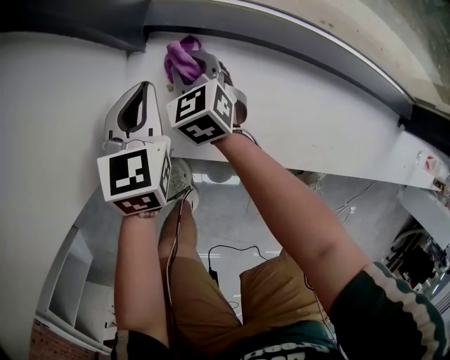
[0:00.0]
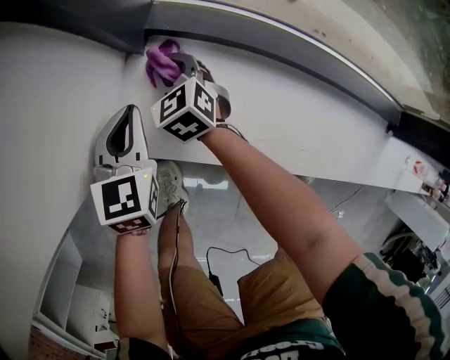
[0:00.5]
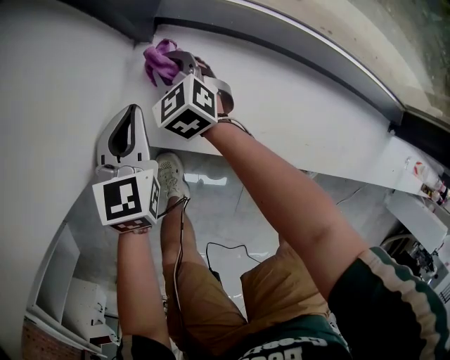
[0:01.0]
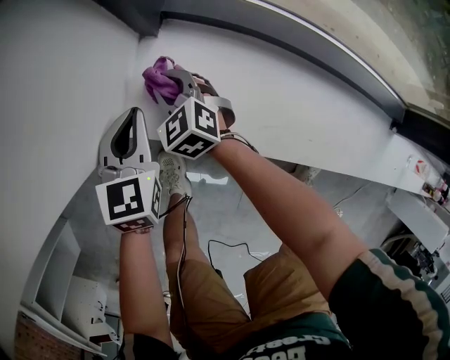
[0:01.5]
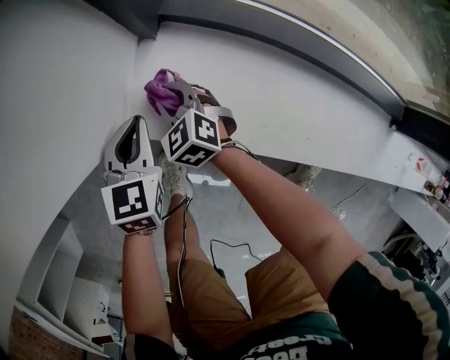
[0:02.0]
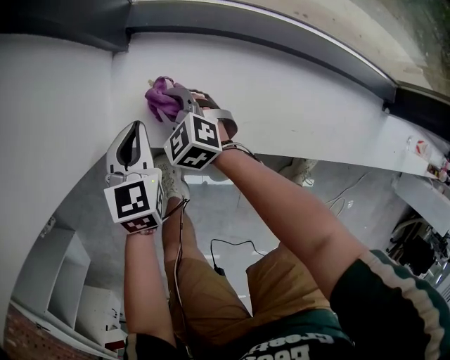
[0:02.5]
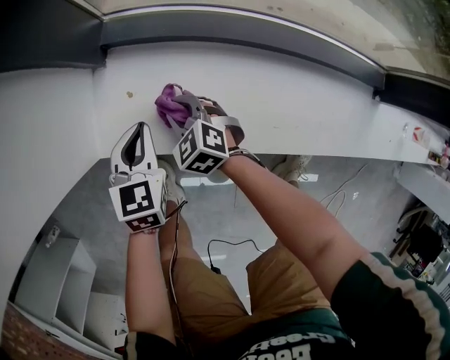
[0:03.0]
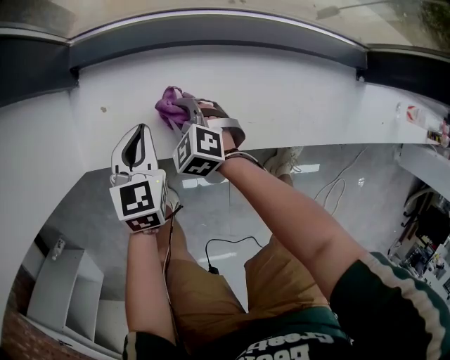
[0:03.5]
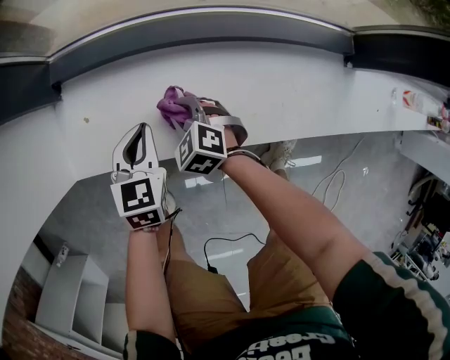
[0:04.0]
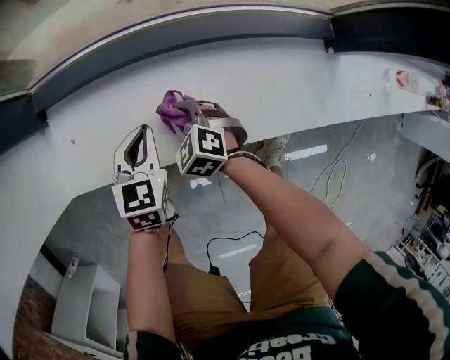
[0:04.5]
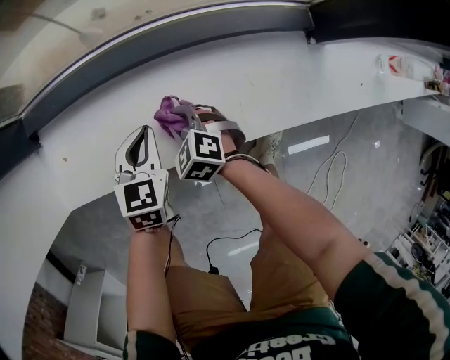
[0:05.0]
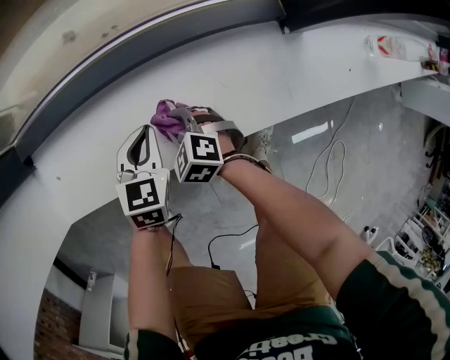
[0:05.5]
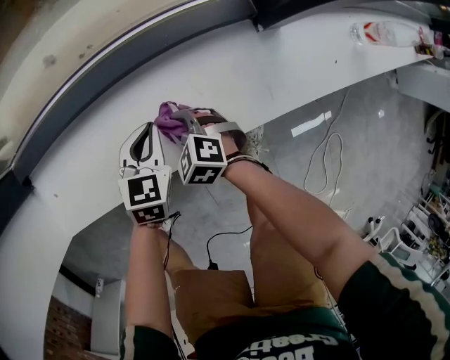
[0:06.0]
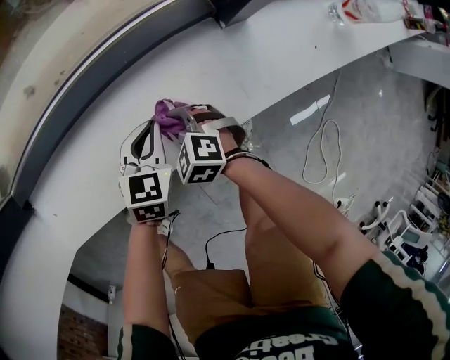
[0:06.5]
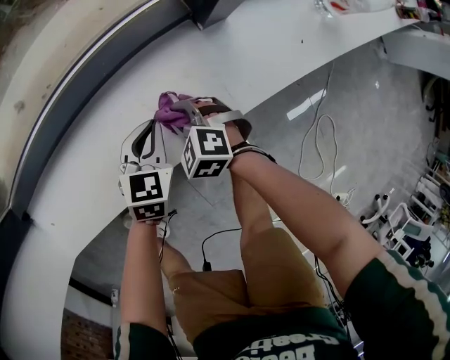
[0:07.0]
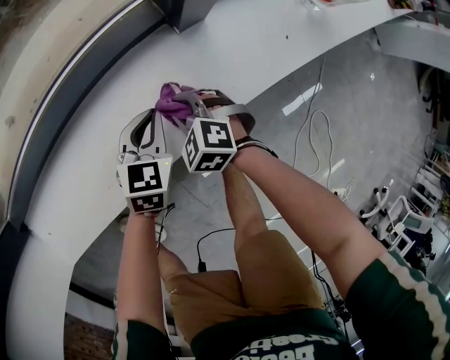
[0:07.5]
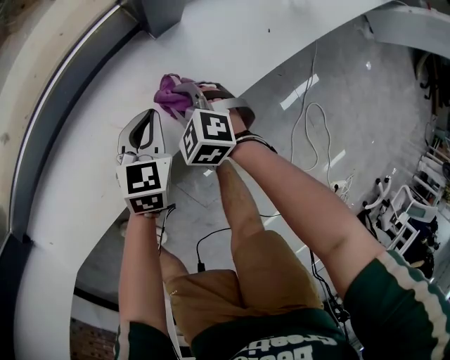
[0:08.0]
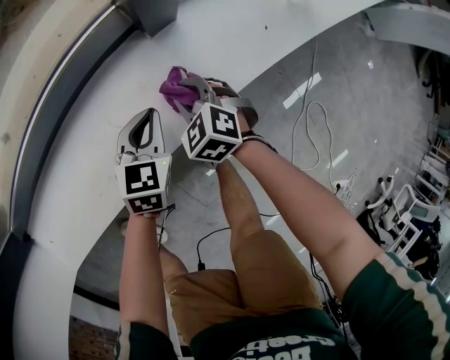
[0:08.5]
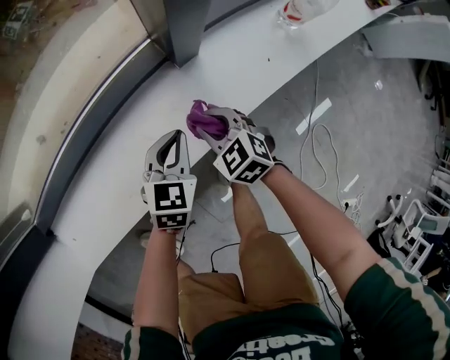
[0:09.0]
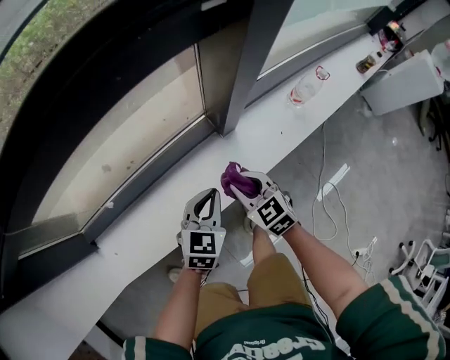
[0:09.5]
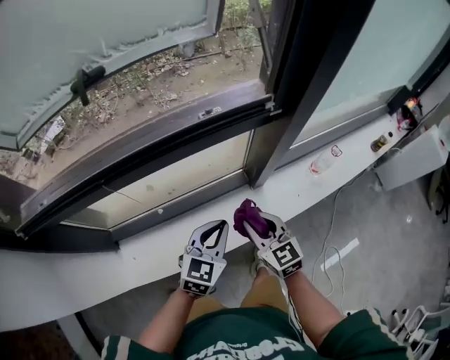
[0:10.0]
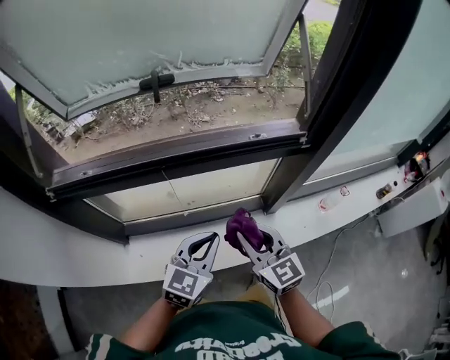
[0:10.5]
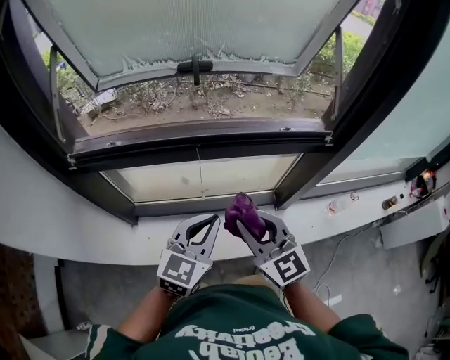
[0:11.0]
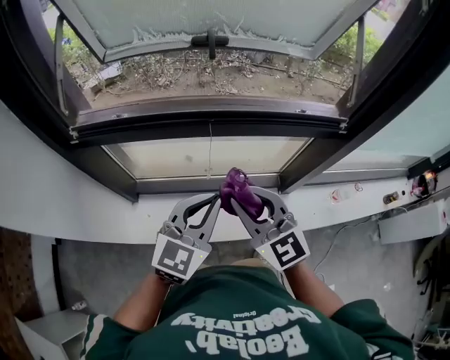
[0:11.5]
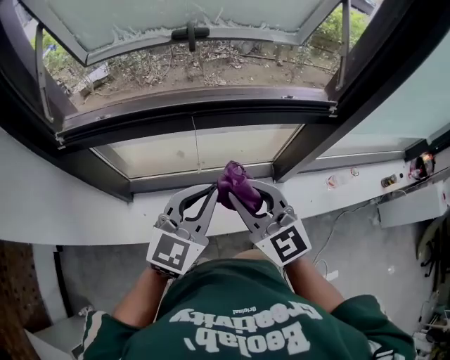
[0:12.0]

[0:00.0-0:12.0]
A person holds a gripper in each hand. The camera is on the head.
0:00.0 to 0:02.0: The left gripper goes about 10 cm backward and to the left. Meanwhile the right gripper travels to the left and backward by about 10 cm, and rotates roughly 20 degrees.
0:02.0 to 0:04.0: The left gripper is displaced to the right by roughly 25 cm. The right gripper moves to the right and backward, some 25 cm.
0:04.0 to 0:06.0: Both grippers move to the right, approximately 25 cm. The left gripper swivels some 20 degrees.
0:06.0 to 0:08.0: The grippers both shift to the right by some 25 cm.
0:08.0 to 0:10.0: The two grippers go approximately 50 cm upward. The right gripper points its fingers approximately 40 degrees further upward.
0:10.0 to 0:12.0: The grippers both shift upward and to the left by approximately 25 cm. The right gripper changes its angle by approximately 30 degrees. Meanwhile the left gripper turns by some 20 degrees.

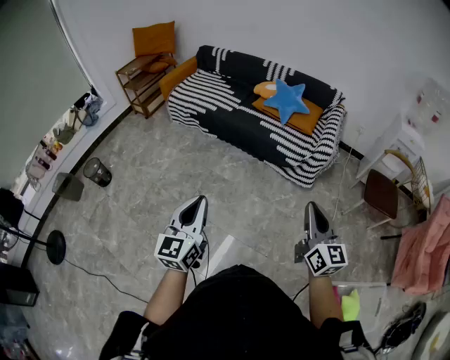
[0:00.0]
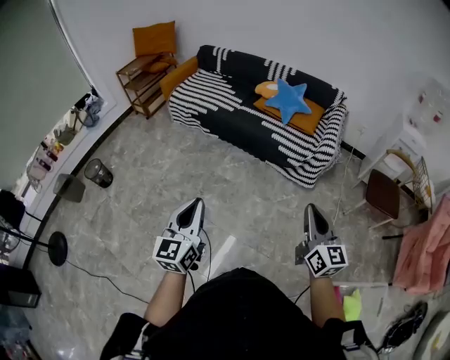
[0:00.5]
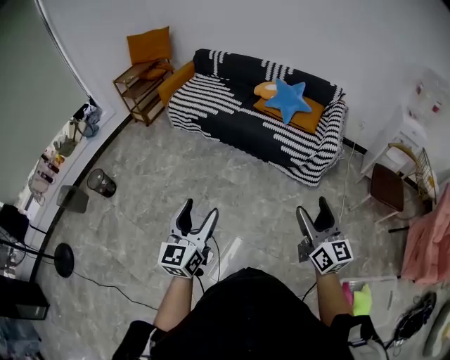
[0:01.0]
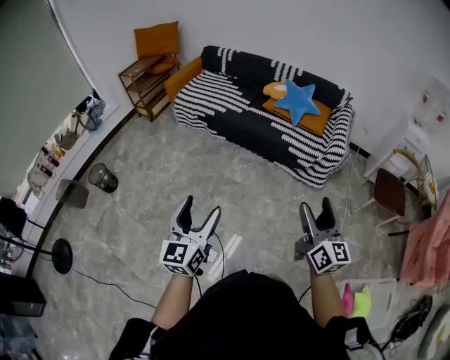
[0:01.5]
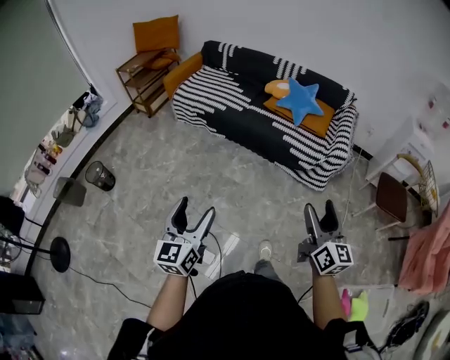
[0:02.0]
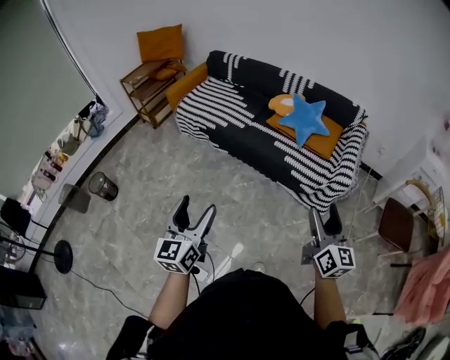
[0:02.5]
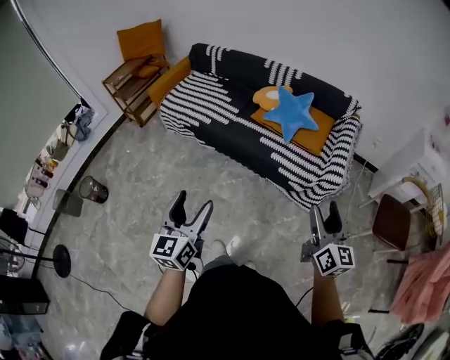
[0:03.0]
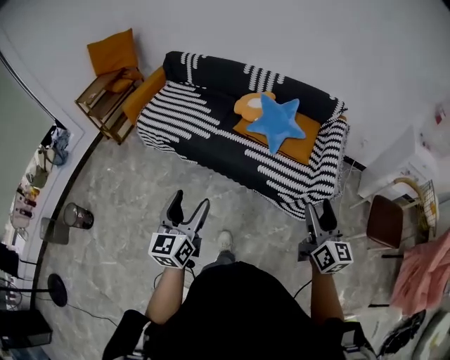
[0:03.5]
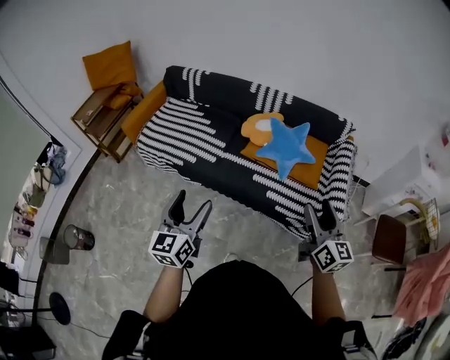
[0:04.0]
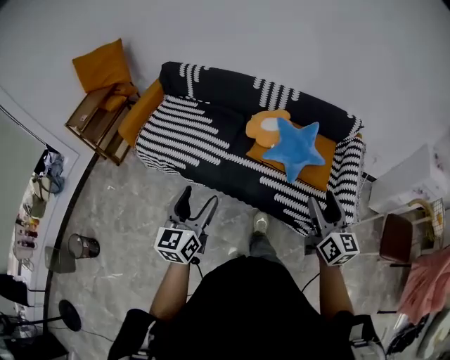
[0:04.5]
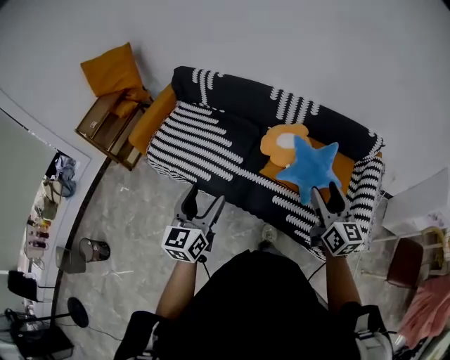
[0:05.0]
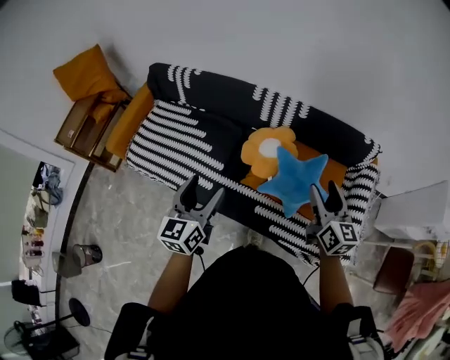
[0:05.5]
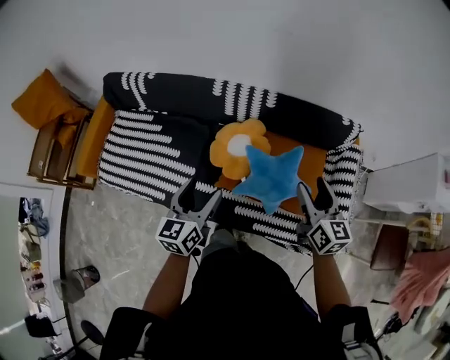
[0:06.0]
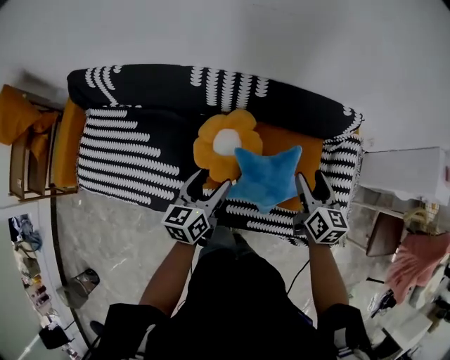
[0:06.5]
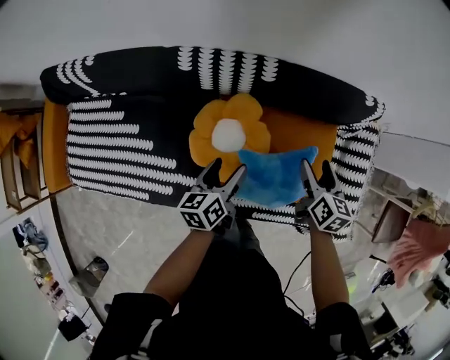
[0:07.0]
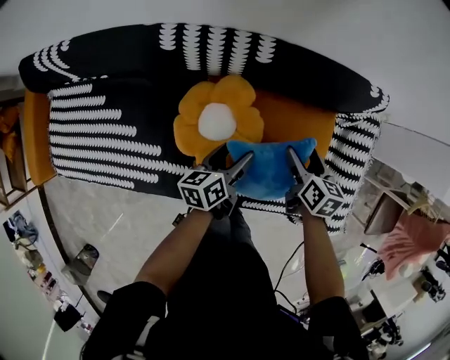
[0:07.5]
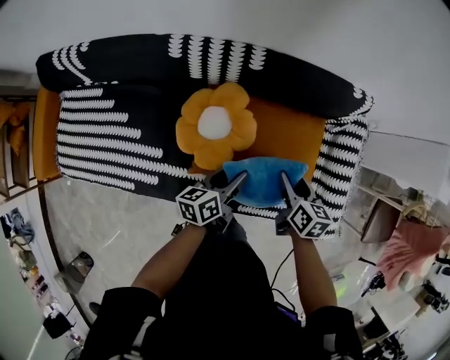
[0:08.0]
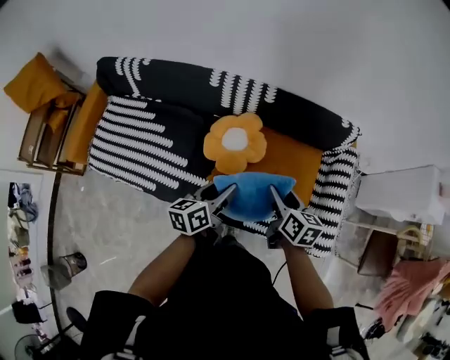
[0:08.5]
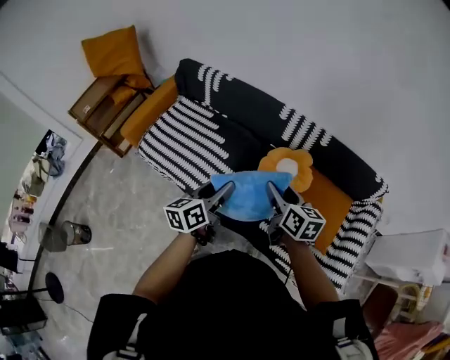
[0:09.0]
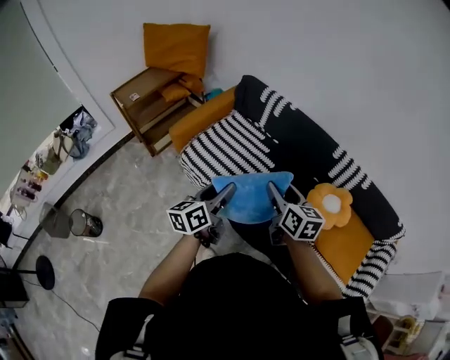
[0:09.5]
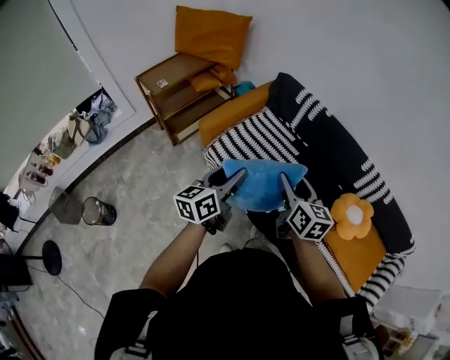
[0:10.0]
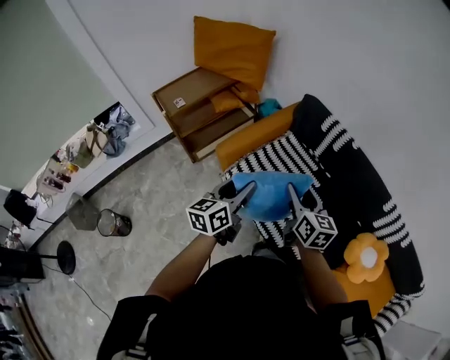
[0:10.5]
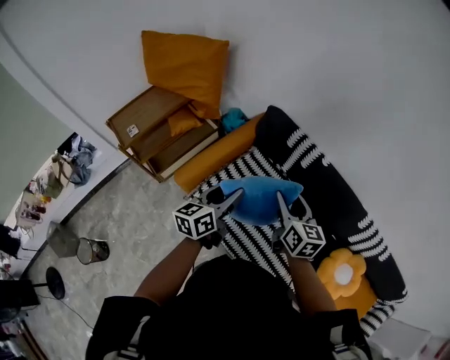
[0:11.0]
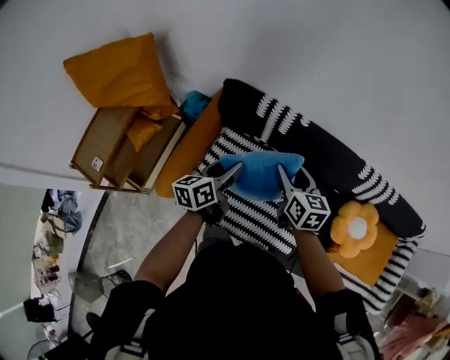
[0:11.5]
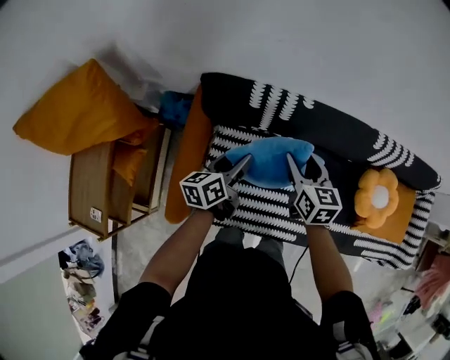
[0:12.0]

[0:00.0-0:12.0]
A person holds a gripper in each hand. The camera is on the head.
0:00.0 to 0:02.0: The two grippers go approximately 10 cm to the left and forward. The right gripper opens; the left gripper opens its fingers.
0:02.0 to 0:04.0: Both grippers are carried forward, approximately 50 cm.
0:04.0 to 0:06.0: Both grippers are carried forward, roughly 40 cm.
0:06.0 to 0:08.0: The right gripper moves downward, some 20 cm, and swivels approximately 30 degrees; the left gripper is displaced downward, to the right and forward by some 30 cm, and rotates approximately 40 degrees.
0:08.0 to 0:10.0: The two grippers travel together, some 70 cm. The left gripper swivels approximately 50 degrees. The right gripper rotates about 50 degrees.
0:10.0 to 0:12.0: The pair of grippers is taken roughly 50 cm. The right gripper rotates some 30 degrees; the left gripper rotates approximately 40 degrees.

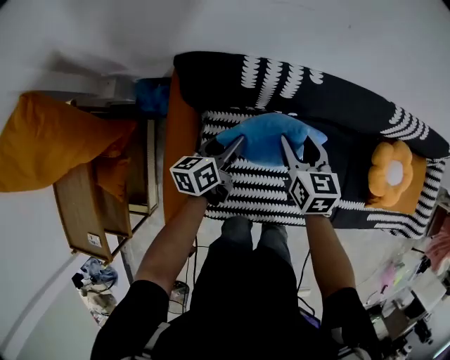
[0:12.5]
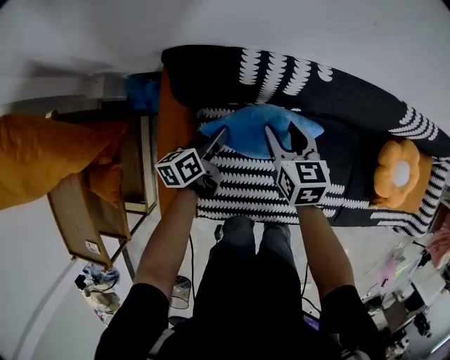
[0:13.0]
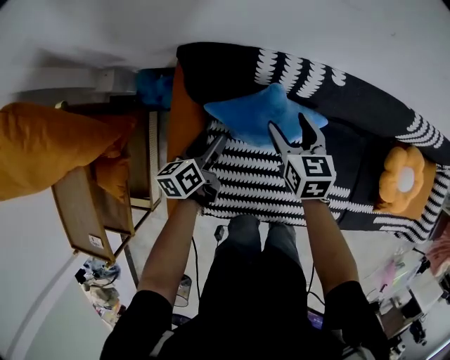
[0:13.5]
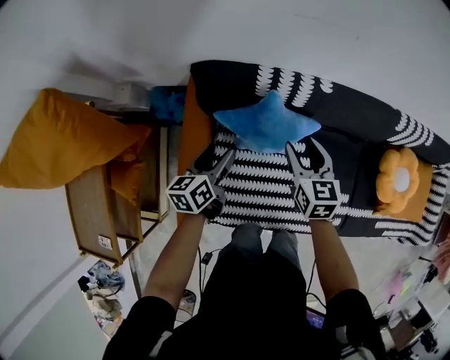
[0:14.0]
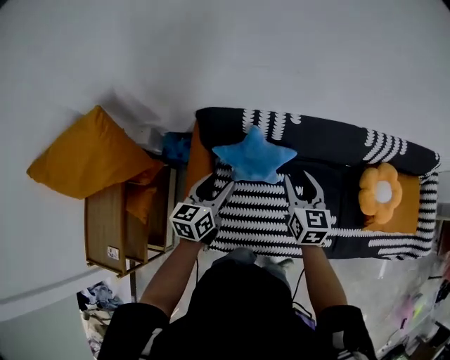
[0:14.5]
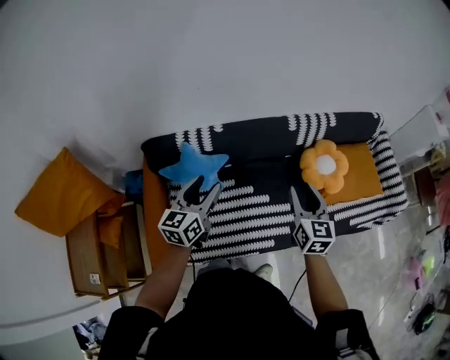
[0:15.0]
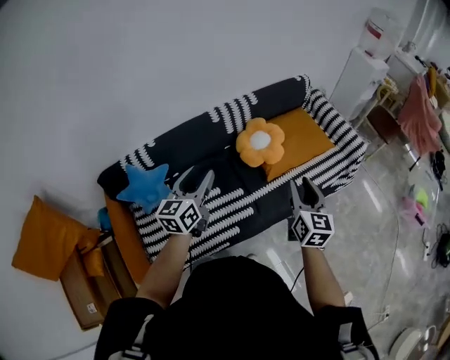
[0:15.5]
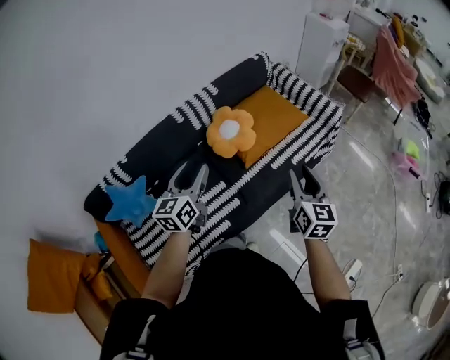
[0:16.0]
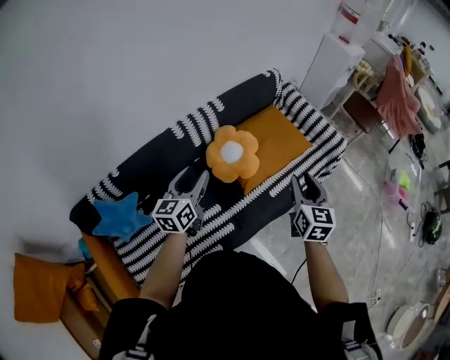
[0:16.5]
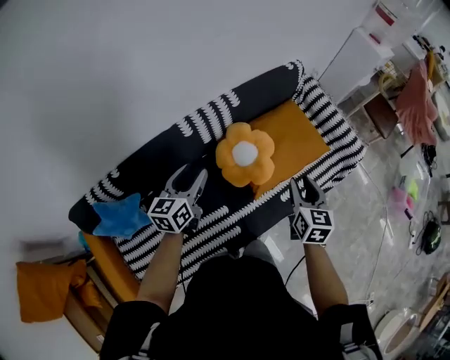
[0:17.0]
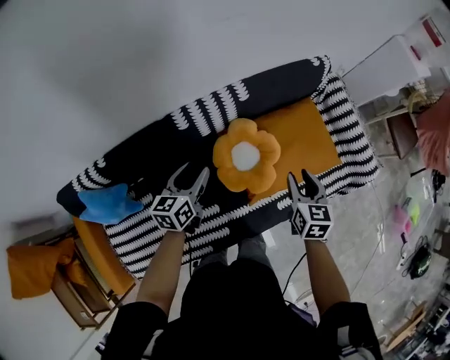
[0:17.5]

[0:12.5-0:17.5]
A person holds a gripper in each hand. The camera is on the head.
0:12.5 to 0:15.0: The right gripper travels to the right, upward and backward by some 40 cm, and changes its angle by about 30 degrees, while the left gripper shifts roughly 35 cm upward, to the right and backward, and swivels roughly 40 degrees.
0:15.0 to 0:17.5: Both grippers are carried approximately 40 cm. The left gripper swivels approximately 20 degrees. Meanwhile the right gripper turns by some 30 degrees.
